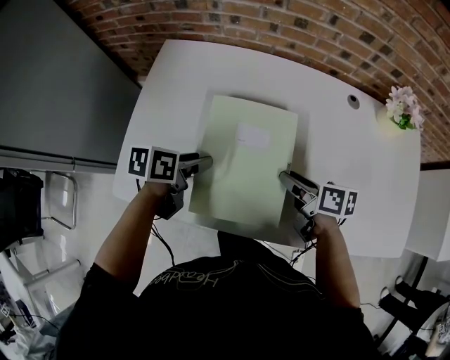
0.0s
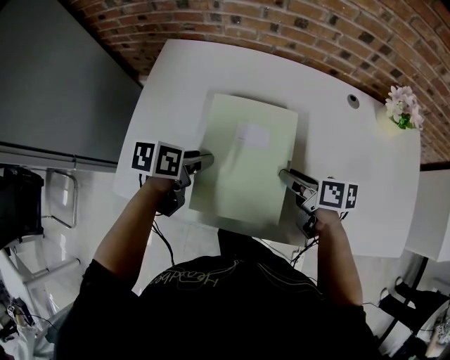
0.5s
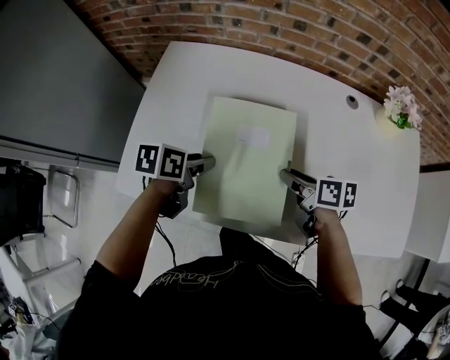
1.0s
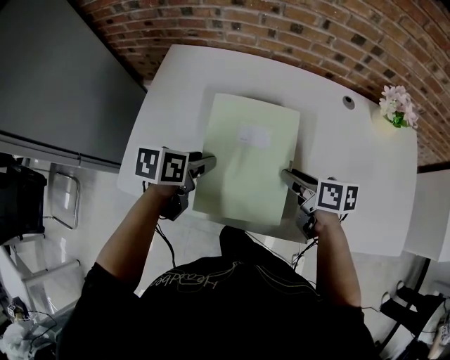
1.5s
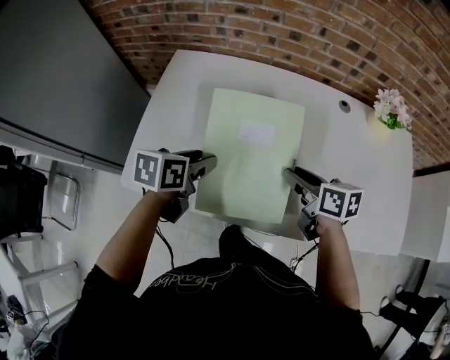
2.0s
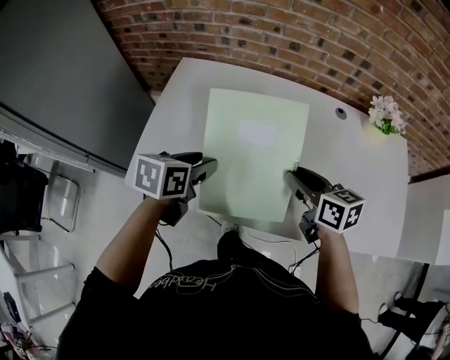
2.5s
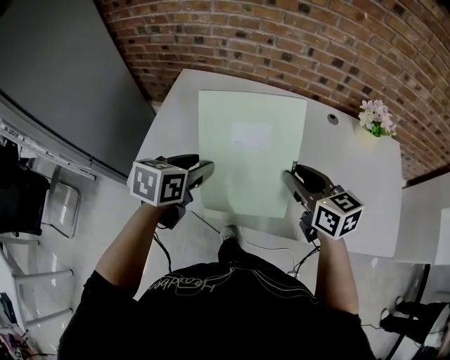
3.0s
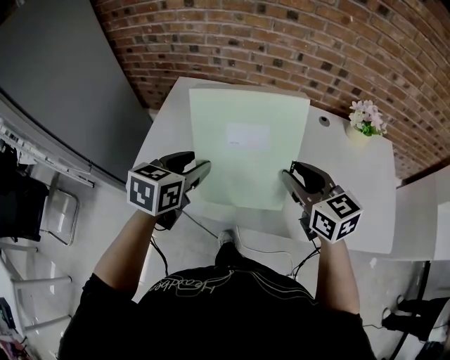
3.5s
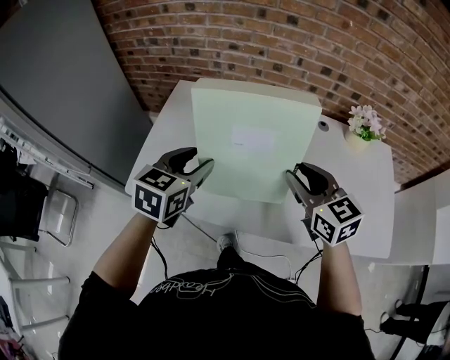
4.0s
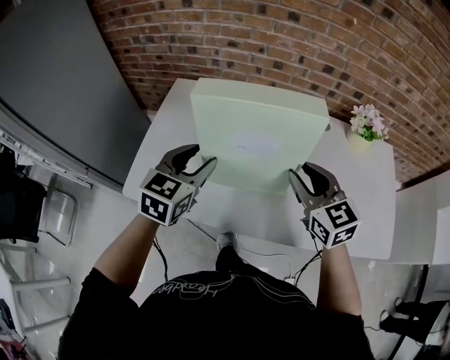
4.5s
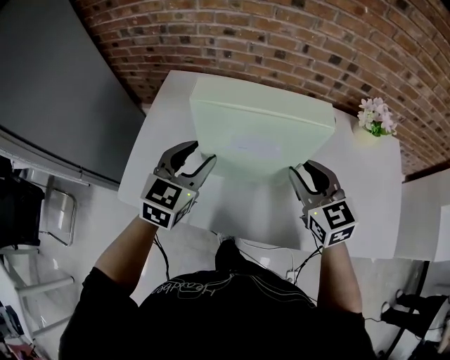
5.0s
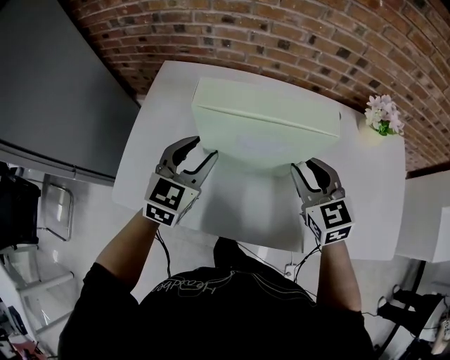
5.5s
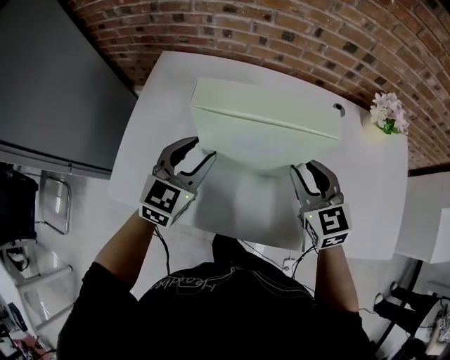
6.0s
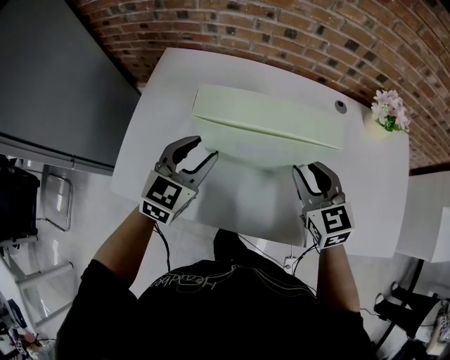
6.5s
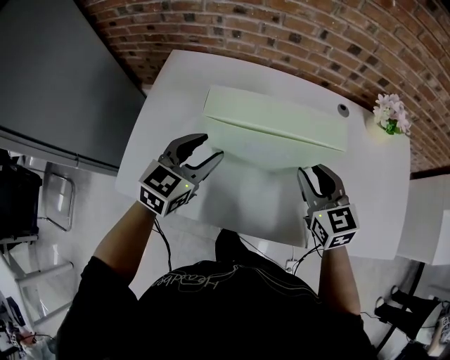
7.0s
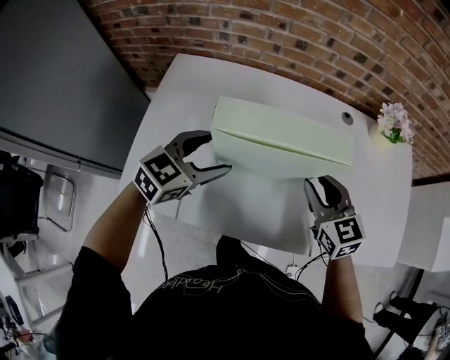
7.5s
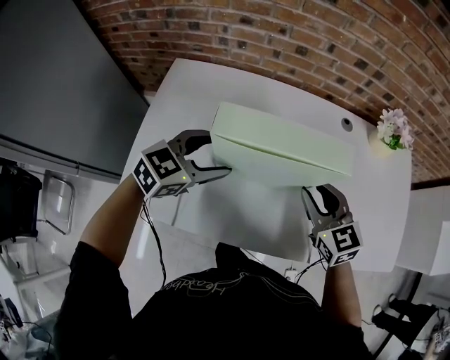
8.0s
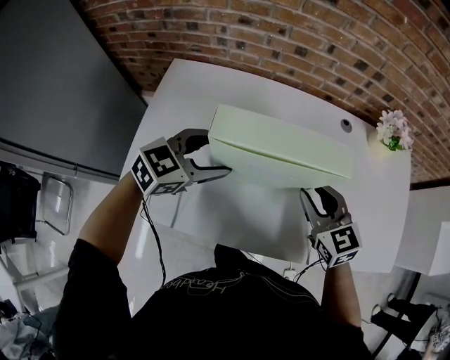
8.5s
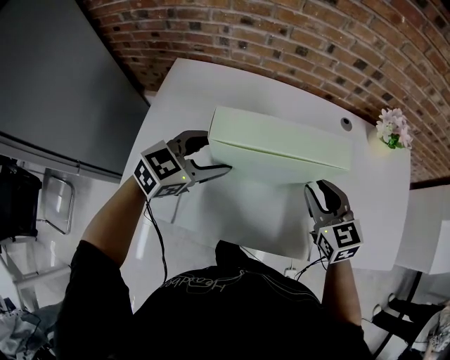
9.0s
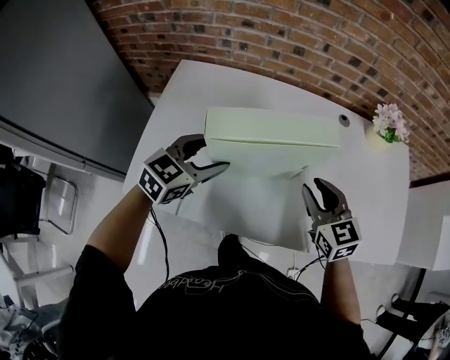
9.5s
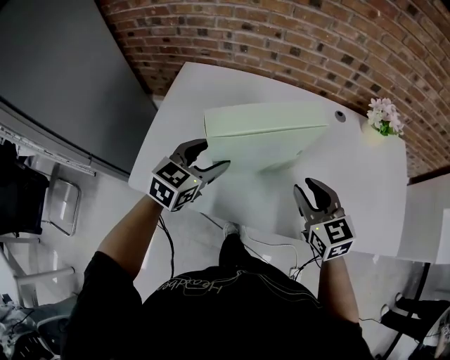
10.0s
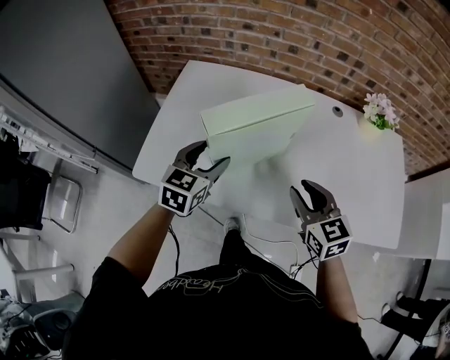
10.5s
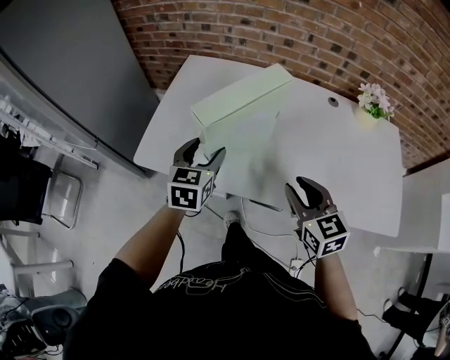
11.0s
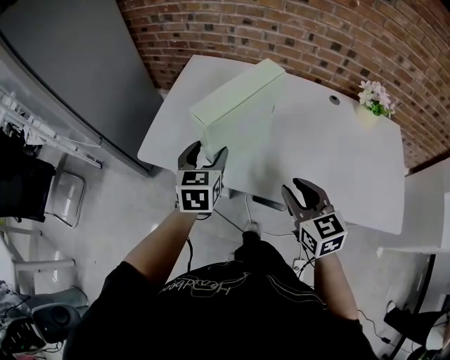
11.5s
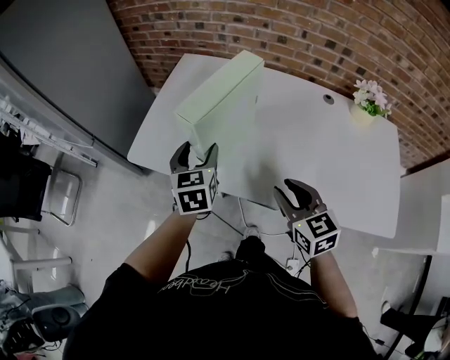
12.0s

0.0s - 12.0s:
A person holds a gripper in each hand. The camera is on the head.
0.0s - 2.0s: The grippers both shift upward by about 5 cm.
2.0s - 4.0s: The grippers both shift upward by roughly 15 cm. The left gripper rotates approximately 30 degrees, while the right gripper rotates around the line of its fingers by some 40 degrees, counterclockwise from behind.
4.0s - 6.0s: Both grippers move downward and forward, about 10 cm.
6.0s - 8.0s: The left gripper swivels about 30 degrees, and opens its fingers.
8.0s - 10.0s: Both grippers move backward, approximately 5 cm. The left gripper rotates about 20 degrees.
10.0s - 12.0s: The right gripper shifts by about 10 cm. Meanwhile the left gripper ends up some 10 cm from where it was, and turns by about 40 degrees.

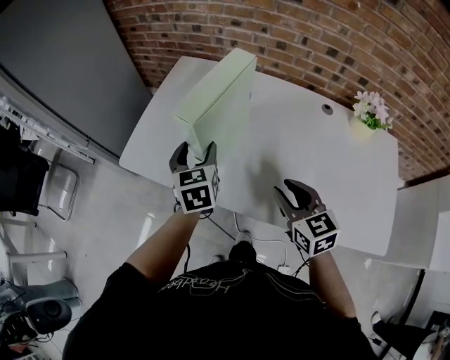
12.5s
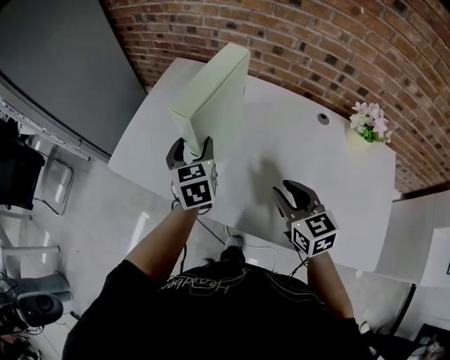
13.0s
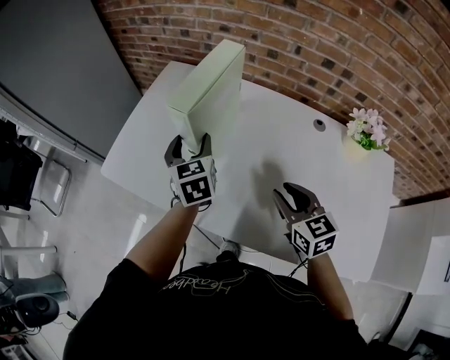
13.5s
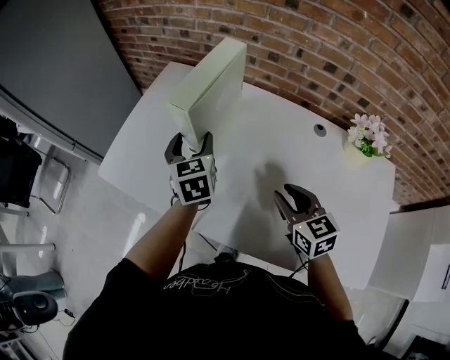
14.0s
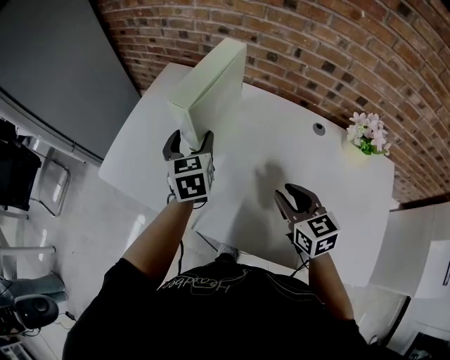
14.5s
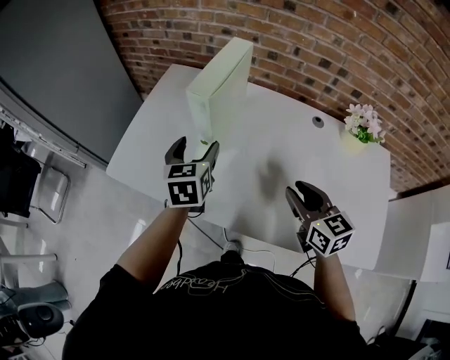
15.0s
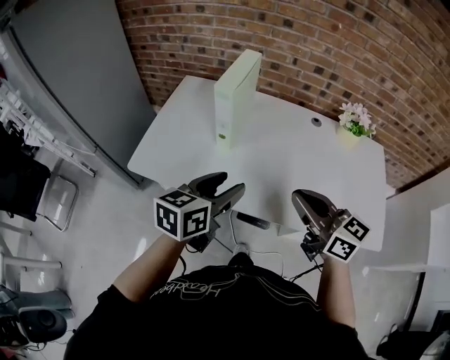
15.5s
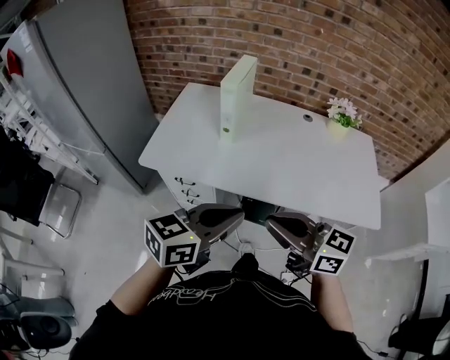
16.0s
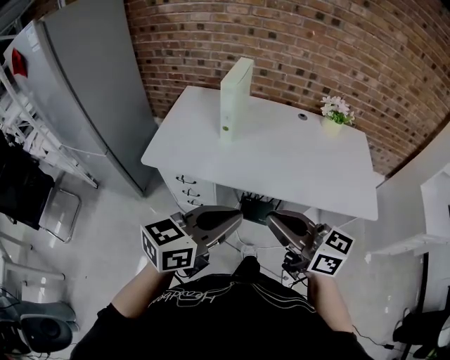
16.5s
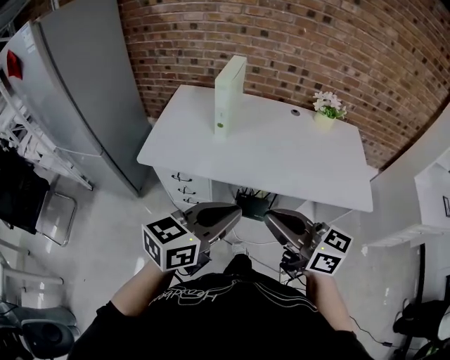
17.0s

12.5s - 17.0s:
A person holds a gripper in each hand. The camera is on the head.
12.5s - 14.5s: The left gripper travels to the right and forward by some 10 cm. The right gripper goes some 10 cm to the right.
14.5s - 17.0s: Both grippers are carried some 40 cm. The left gripper turns by about 70 degrees, and closes up; the right gripper swivels roughly 30 degrees, and closes.

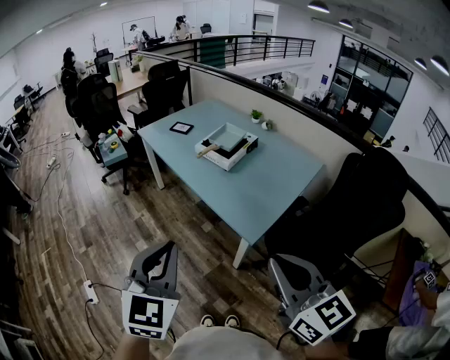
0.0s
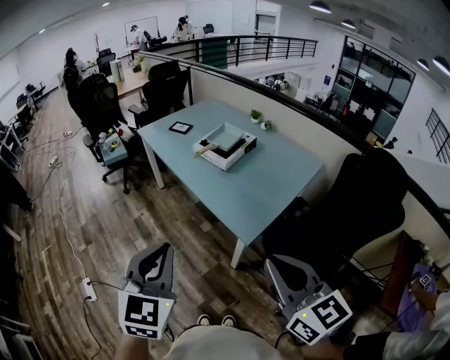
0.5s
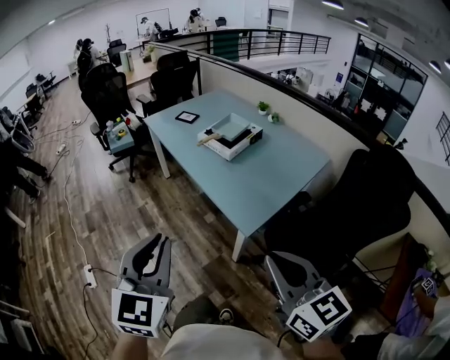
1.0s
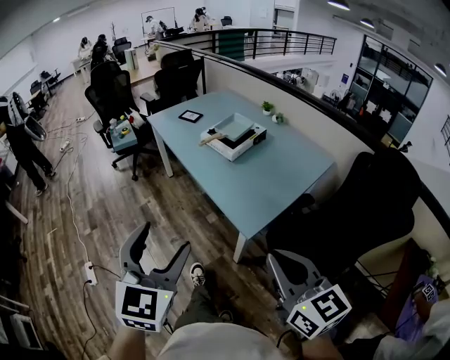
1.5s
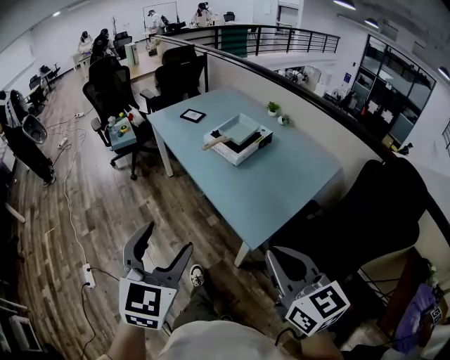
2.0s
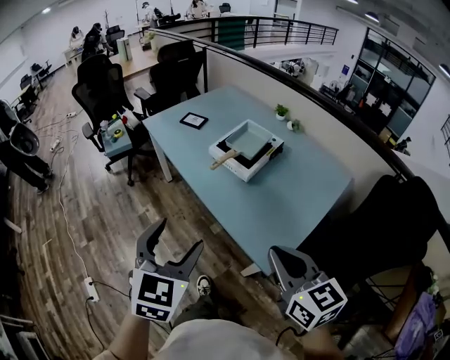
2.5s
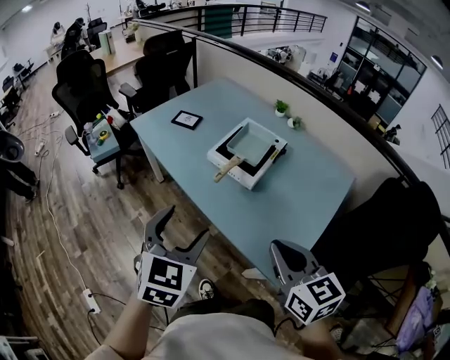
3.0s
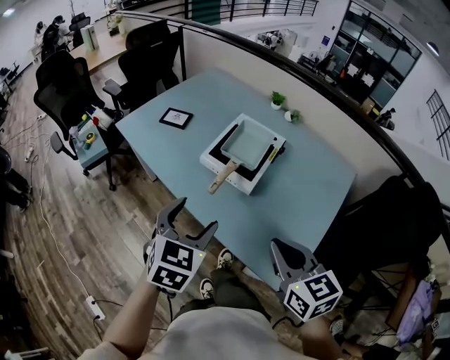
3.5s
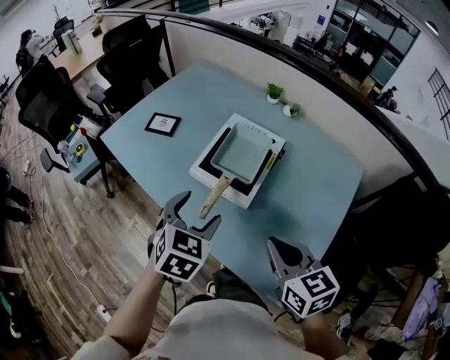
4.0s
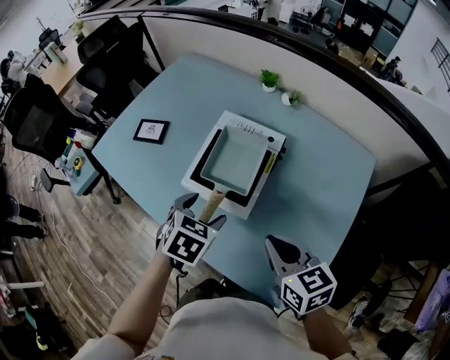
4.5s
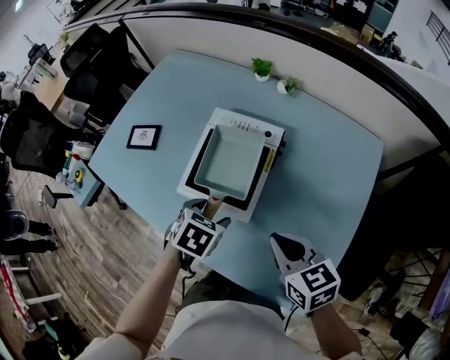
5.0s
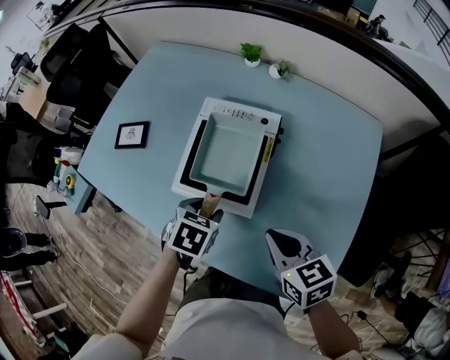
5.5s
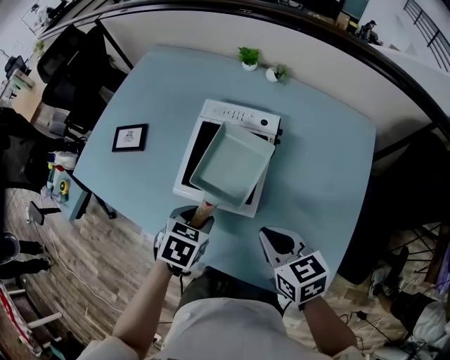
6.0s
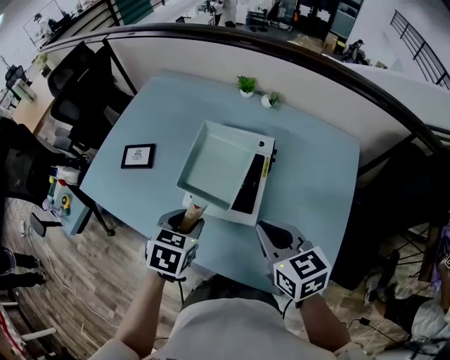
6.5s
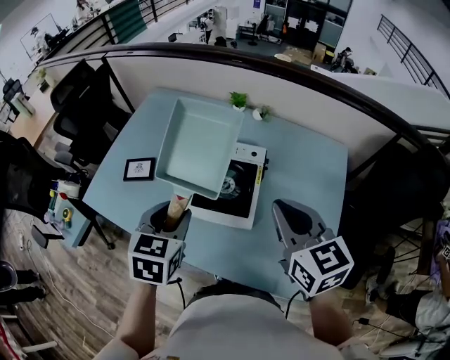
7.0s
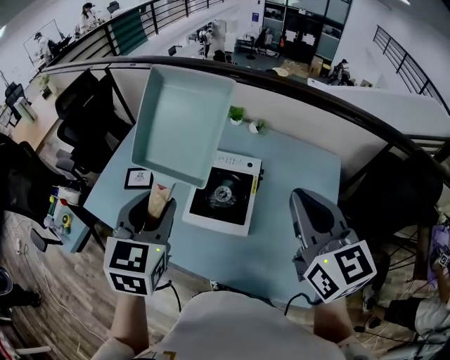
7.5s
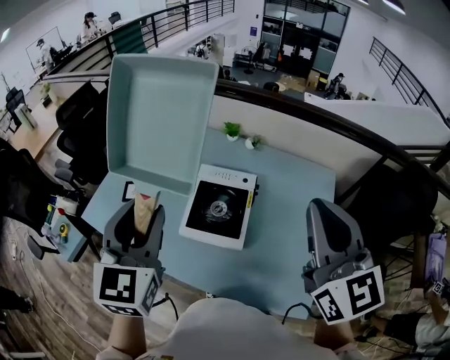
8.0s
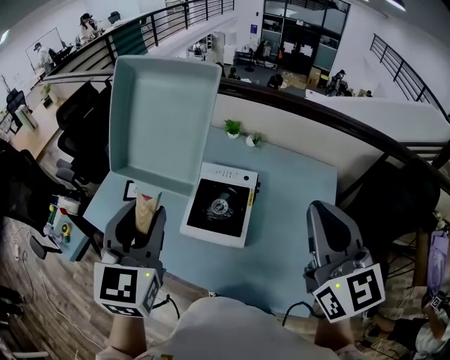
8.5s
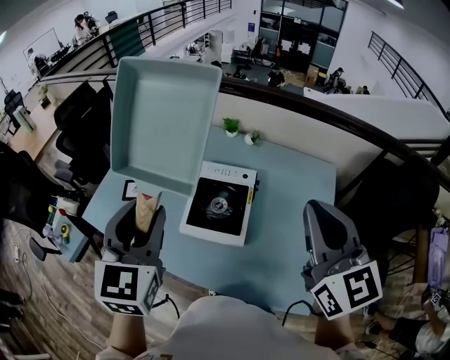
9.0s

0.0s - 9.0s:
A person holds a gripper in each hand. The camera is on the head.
0.0s - 2.0s: The right gripper heads forward and downward, covering some 10 cm; the left gripper shifts about 5 cm forward, and opens up.
2.0s - 4.5s: The two grippers travel together, forward, approximately 60 cm. The left gripper heads downward, covering approximately 25 cm, and tilts its fingers approximately 40 degrees downward, while the right gripper swivels approximately 30 degrees.
4.5s - 7.0s: The right gripper shifts about 15 cm upward and forward, and changes its angle by roughly 30 degrees. The left gripper travels upward and to the left by approximately 15 cm, and closes up.
7.0s - 9.0s: The grippers both shift upward by approximately 15 cm. The left gripper swivels approximately 30 degrees; the right gripper changes its angle by approximately 20 degrees.

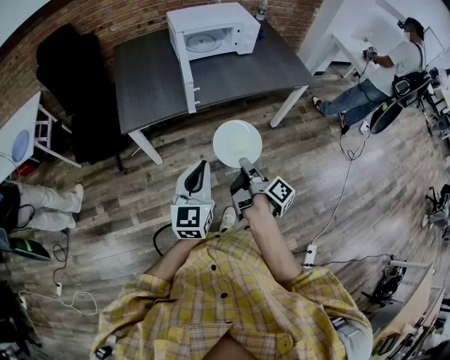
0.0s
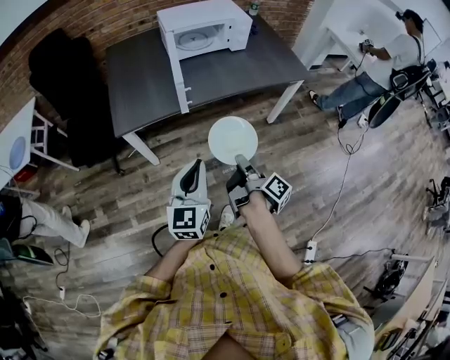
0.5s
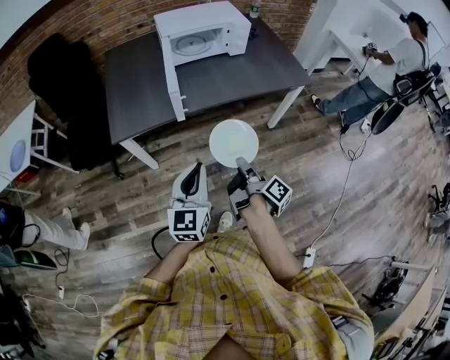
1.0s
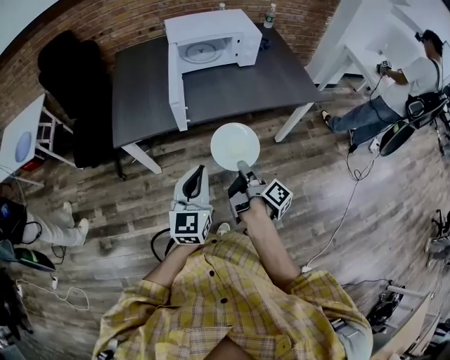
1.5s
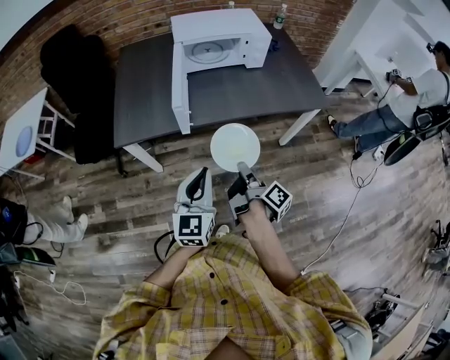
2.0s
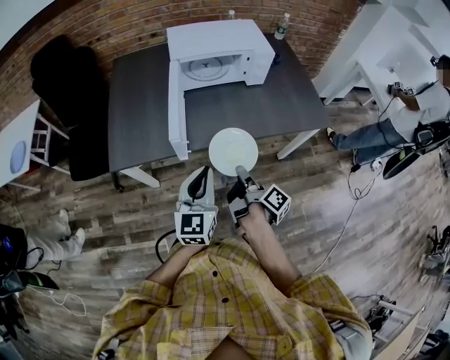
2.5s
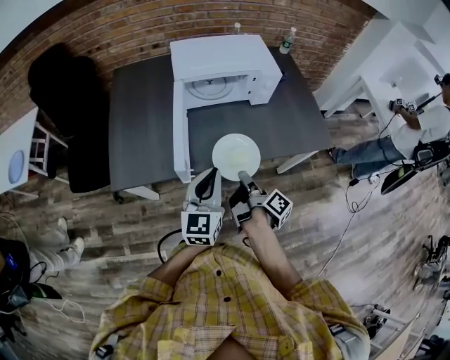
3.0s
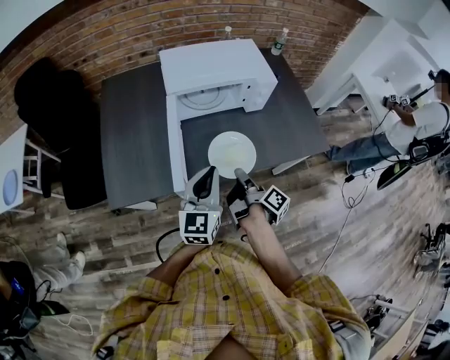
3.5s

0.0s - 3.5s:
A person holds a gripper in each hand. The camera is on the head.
0.0s - 2.0s: The left gripper ends up roughly 15 cm from where it was.
2.0s - 3.5s: The left gripper shifts by approximately 30 cm.
